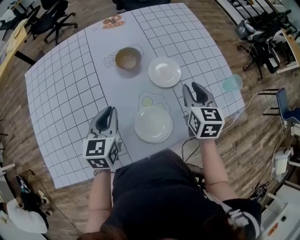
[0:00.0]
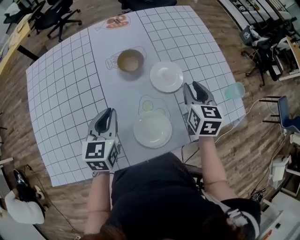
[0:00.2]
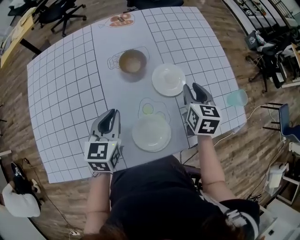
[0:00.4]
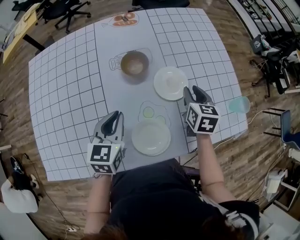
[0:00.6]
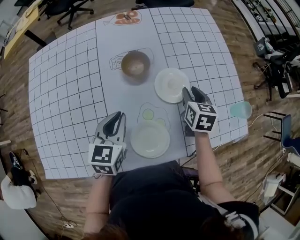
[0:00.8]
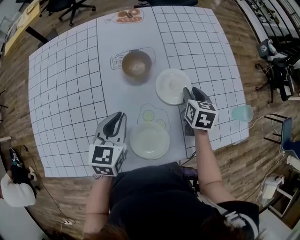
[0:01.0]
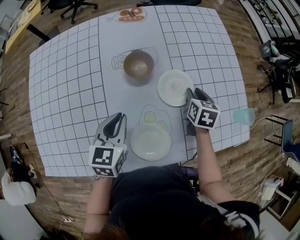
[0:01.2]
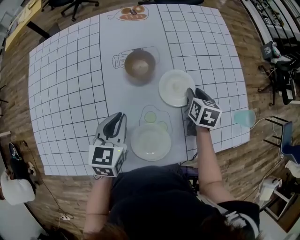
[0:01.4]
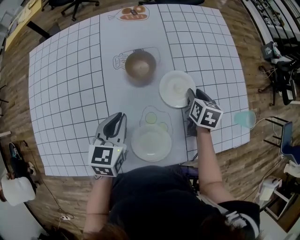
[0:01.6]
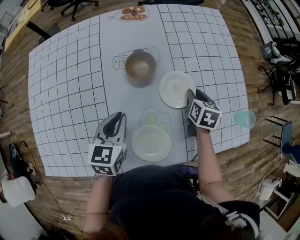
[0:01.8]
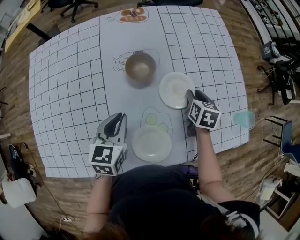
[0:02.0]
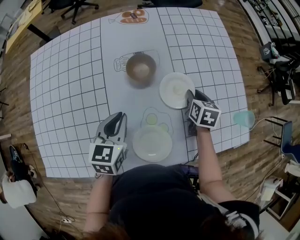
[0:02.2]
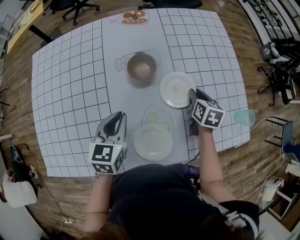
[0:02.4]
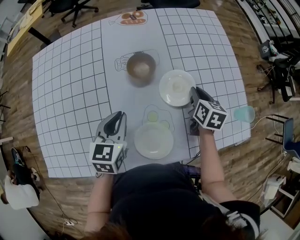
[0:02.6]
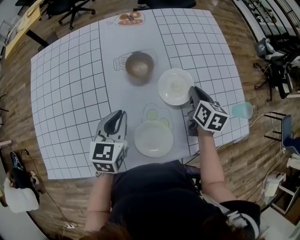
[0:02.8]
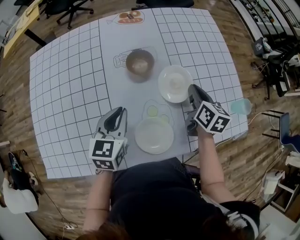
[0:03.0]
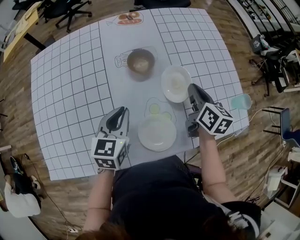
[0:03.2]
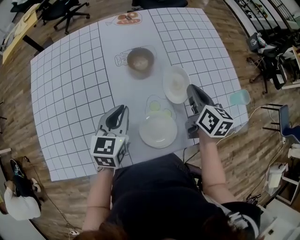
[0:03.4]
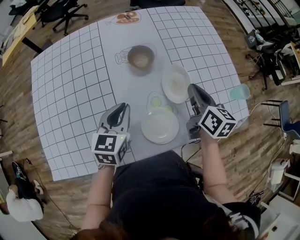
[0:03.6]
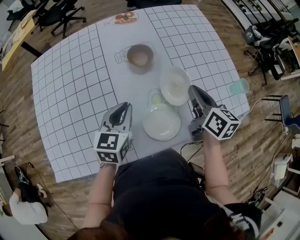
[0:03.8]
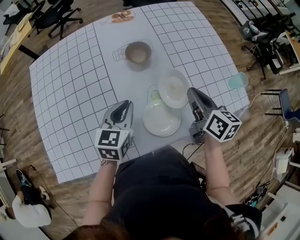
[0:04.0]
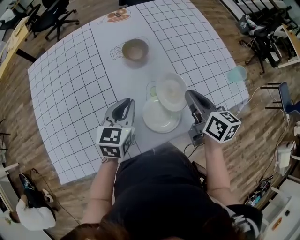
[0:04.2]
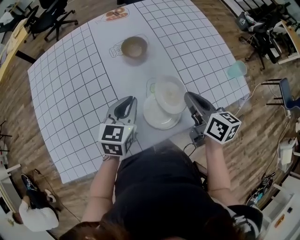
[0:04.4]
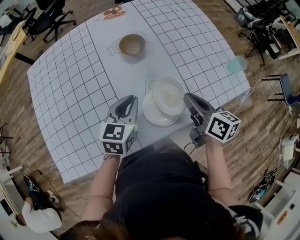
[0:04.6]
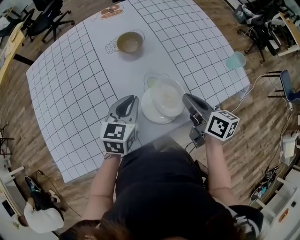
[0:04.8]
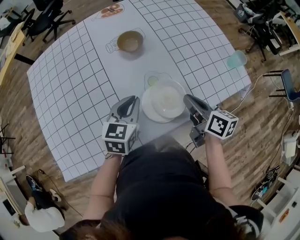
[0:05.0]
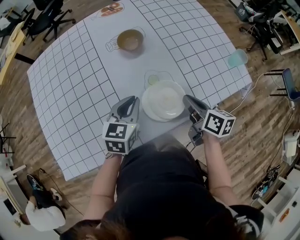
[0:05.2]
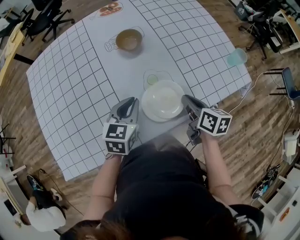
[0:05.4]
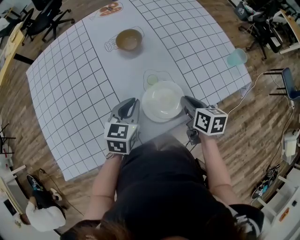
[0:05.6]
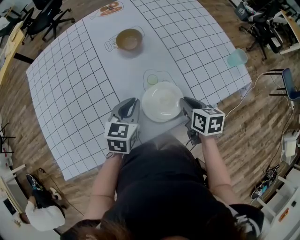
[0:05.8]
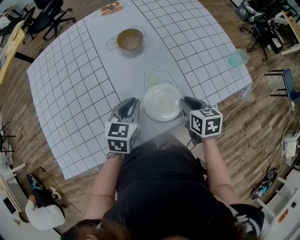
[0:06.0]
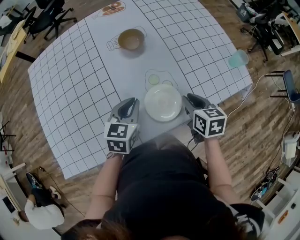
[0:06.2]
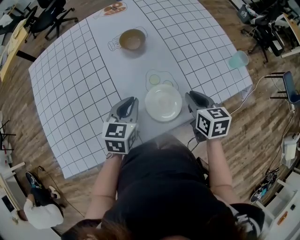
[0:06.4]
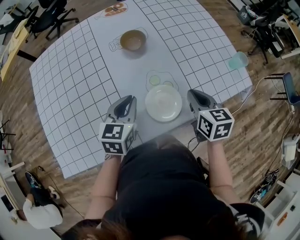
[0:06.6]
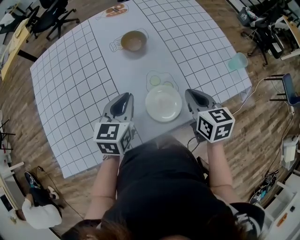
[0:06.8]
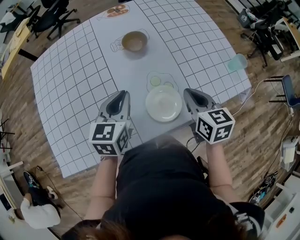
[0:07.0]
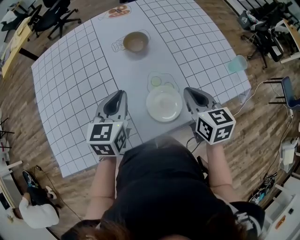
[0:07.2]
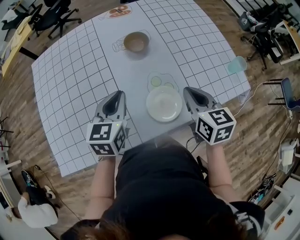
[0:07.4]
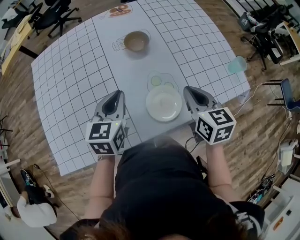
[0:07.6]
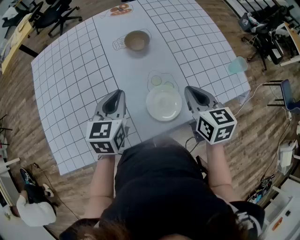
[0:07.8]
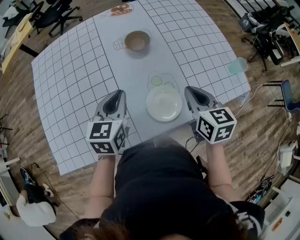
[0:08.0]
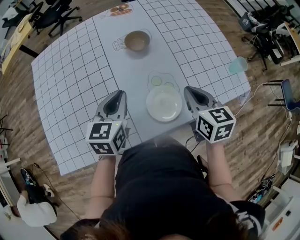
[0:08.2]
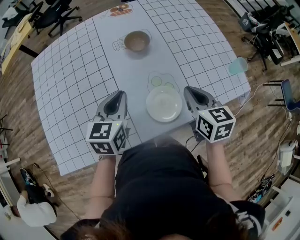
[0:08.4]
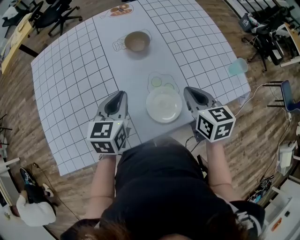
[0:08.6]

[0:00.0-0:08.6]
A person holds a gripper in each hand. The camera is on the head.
0:00.0 to 0:01.4: The right gripper moves downward and forward, roughly 20 cm, and turns by approximately 20 degrees. Meanwhile the left gripper ends up approximately 5 cm from where it was.
0:01.4 to 0:02.8: The right gripper shifts some 5 cm upward.
0:02.8 to 0:04.4: The left gripper travels backward by about 5 cm. Meanwhile the right gripper travels backward and upward by approximately 20 cm.
0:04.4 to 0:05.8: The right gripper goes about 10 cm downward, and rotates roughly 20 degrees, while the left gripper ends up roughly 5 cm from where it was.
0:05.8 to 0:07.2: The right gripper moves upward, approximately 10 cm, and turns by roughly 20 degrees. Meanwhile the left gripper heads upward and to the left, covering some 10 cm.
0:07.2 to 0:08.6: The two grippers keep their place.

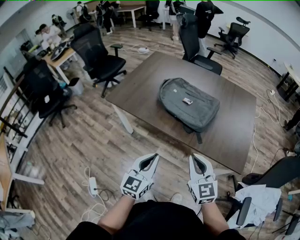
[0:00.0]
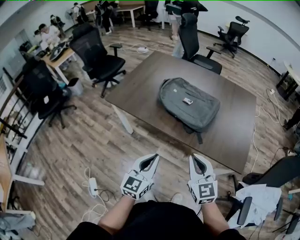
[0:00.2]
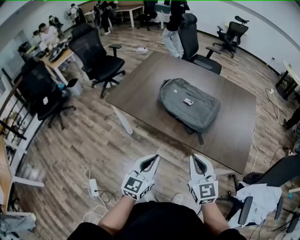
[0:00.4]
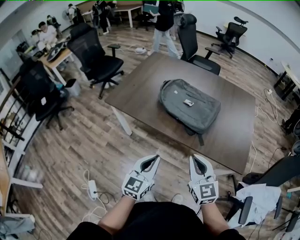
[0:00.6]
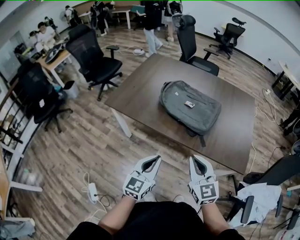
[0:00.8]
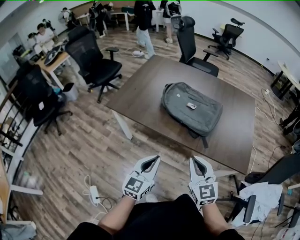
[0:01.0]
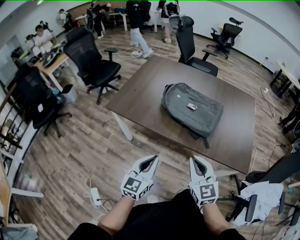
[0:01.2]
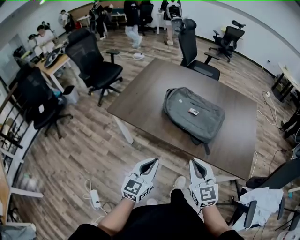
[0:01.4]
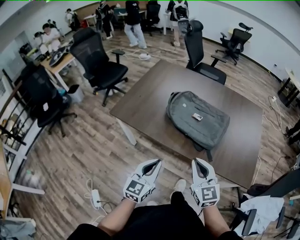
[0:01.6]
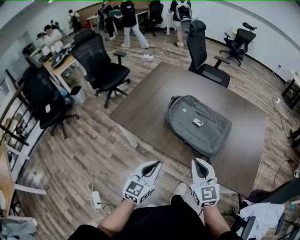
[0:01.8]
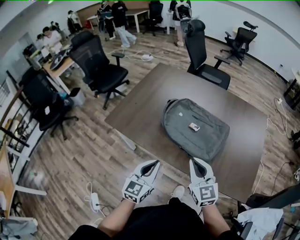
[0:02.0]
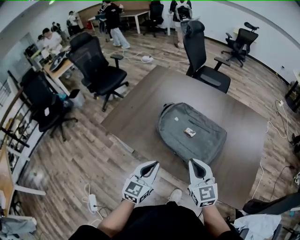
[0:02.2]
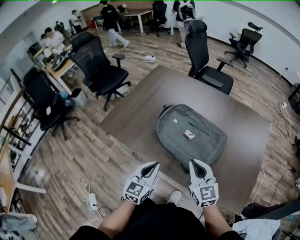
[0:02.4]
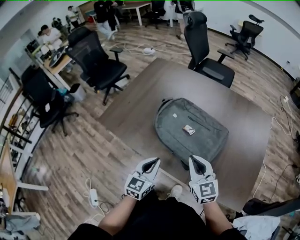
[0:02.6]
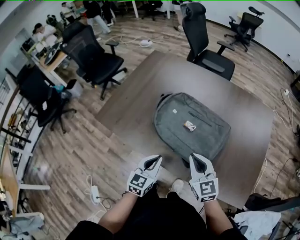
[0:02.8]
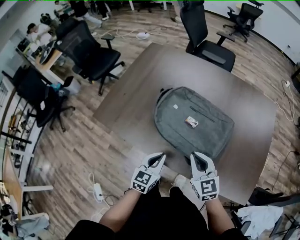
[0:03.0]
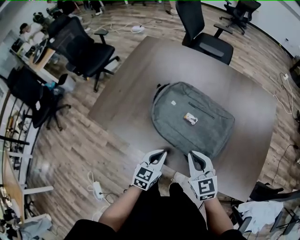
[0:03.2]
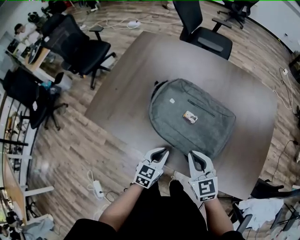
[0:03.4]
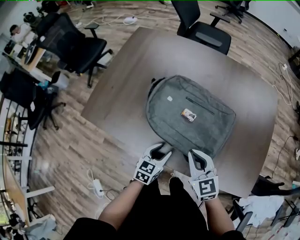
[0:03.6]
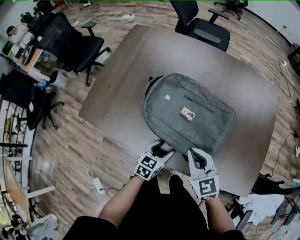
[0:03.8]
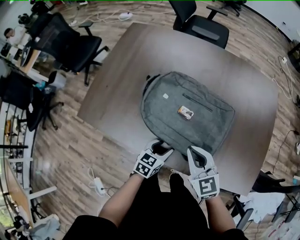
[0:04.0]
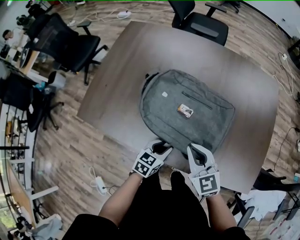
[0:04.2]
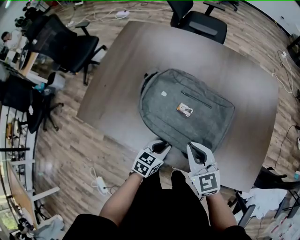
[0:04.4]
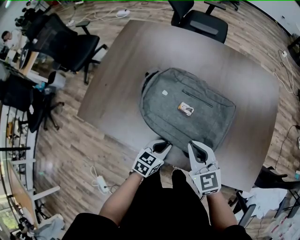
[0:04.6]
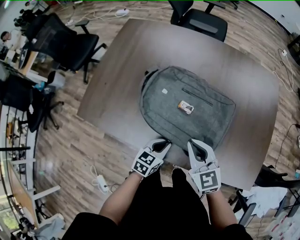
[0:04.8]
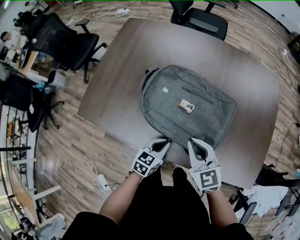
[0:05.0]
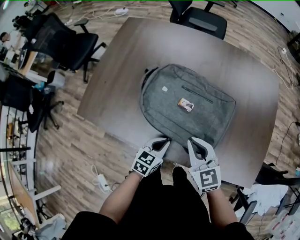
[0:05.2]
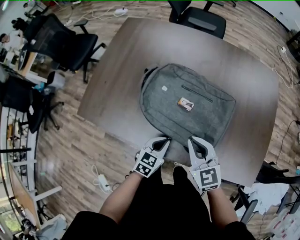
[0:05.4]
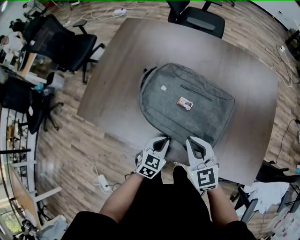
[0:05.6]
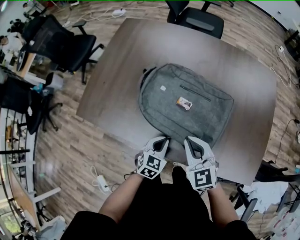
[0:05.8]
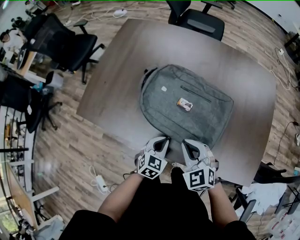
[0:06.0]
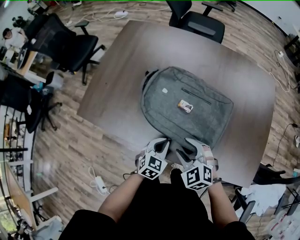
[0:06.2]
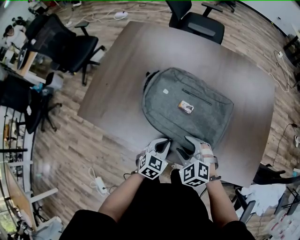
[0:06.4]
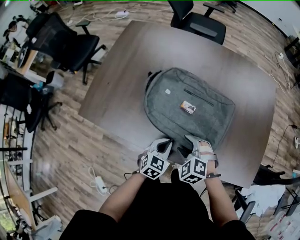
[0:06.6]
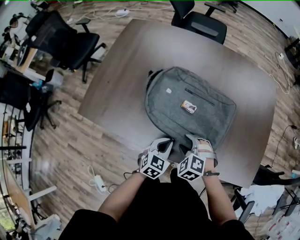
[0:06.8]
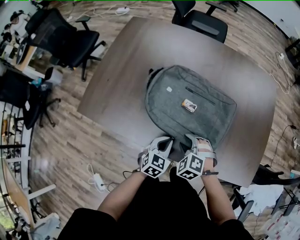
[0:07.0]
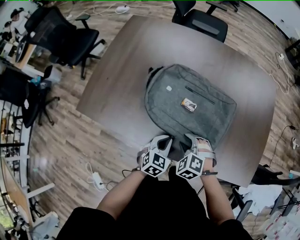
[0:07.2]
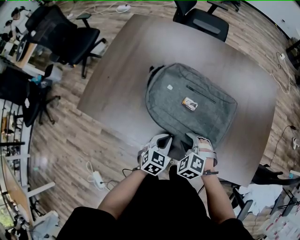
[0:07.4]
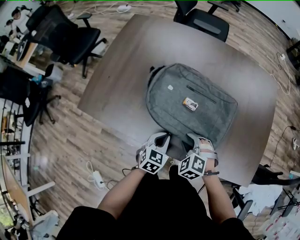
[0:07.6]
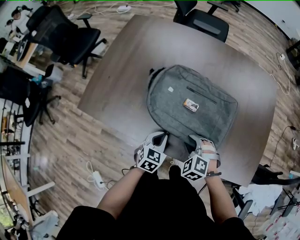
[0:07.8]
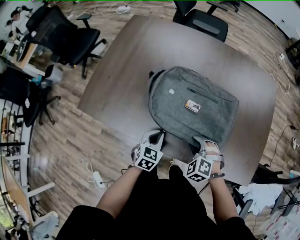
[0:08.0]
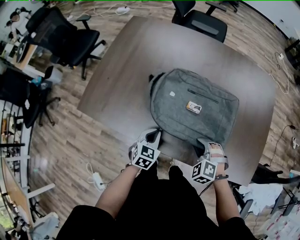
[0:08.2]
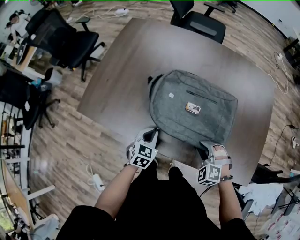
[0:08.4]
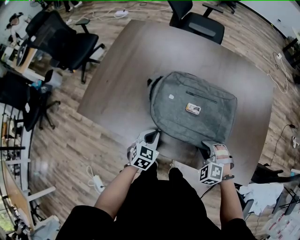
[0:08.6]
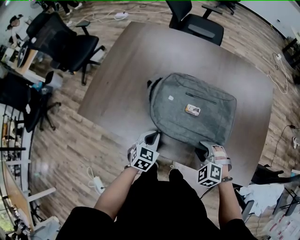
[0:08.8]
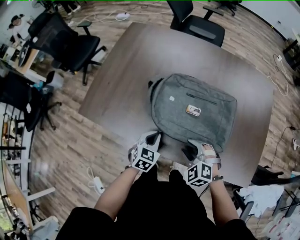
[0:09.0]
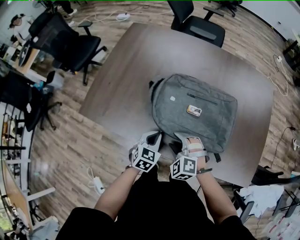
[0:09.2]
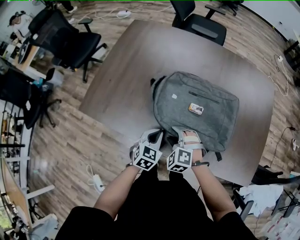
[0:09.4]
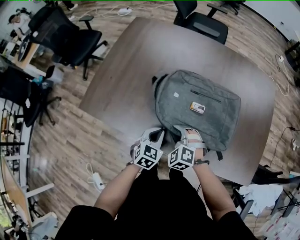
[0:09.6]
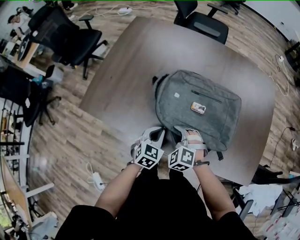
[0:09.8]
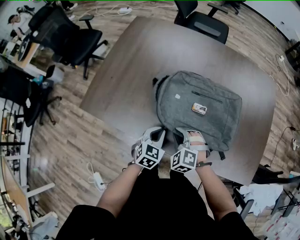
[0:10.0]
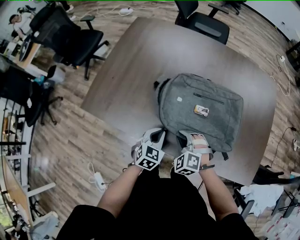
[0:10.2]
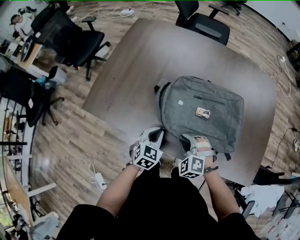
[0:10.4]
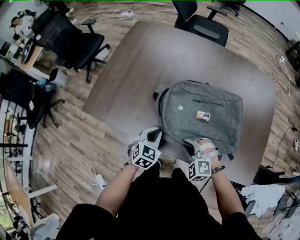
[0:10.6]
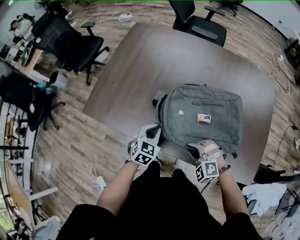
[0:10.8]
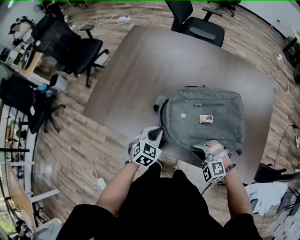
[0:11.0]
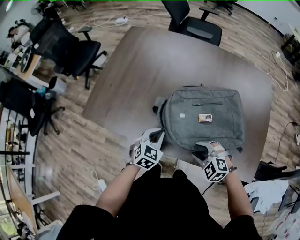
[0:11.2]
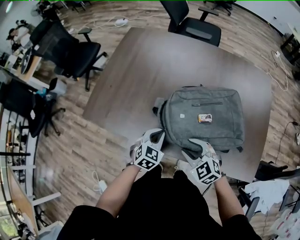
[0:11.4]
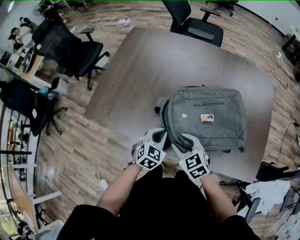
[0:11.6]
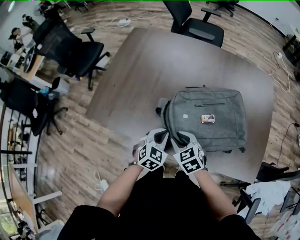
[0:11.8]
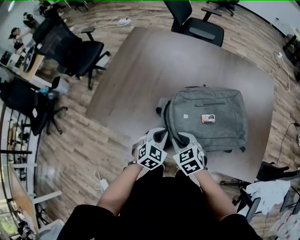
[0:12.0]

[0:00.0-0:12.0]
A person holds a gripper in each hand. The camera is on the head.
0:00.0 to 0:01.6: Both grippers travel together forward and to the left, about 10 cm.
0:01.6 to 0:03.0: Both grippers travel together forward, downward and to the right, roughly 20 cm.
0:03.0 to 0:04.4: The left gripper moves downward, approximately 10 cm, swivels roughly 20 degrees, and opens and closes again.
0:04.4 to 0:06.0: The right gripper rotates about 20 degrees; the left gripper rotates some 20 degrees.
0:06.0 to 0:07.6: The right gripper shifts about 10 cm downward, rotates about 30 degrees, and opens.
0:07.6 to 0:09.0: The right gripper travels to the right and back again, roughly 10 cm each way.
0:09.0 to 0:10.4: The right gripper closes its fingers.
0:10.4 to 0:12.0: The right gripper reaches some 5 cm to the right, then returns, twists about 40 degrees clockwise, seen from behind, and opens, then closes again.

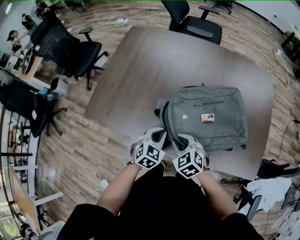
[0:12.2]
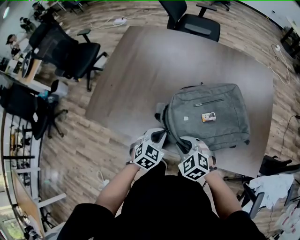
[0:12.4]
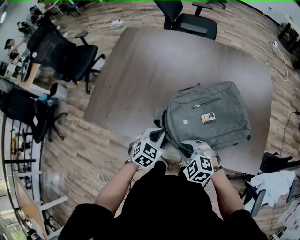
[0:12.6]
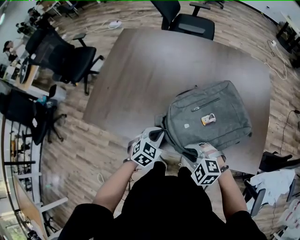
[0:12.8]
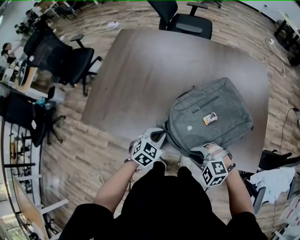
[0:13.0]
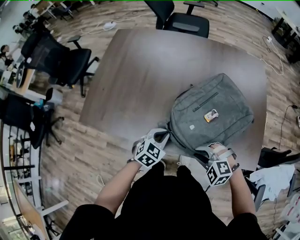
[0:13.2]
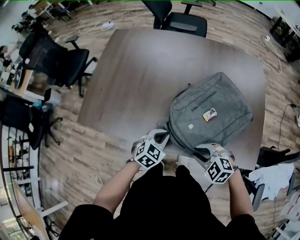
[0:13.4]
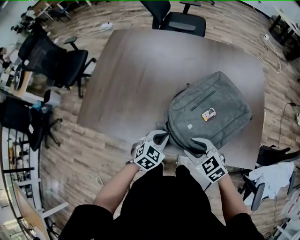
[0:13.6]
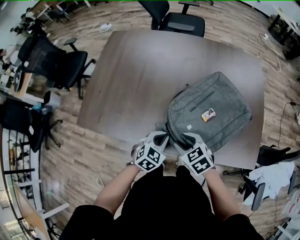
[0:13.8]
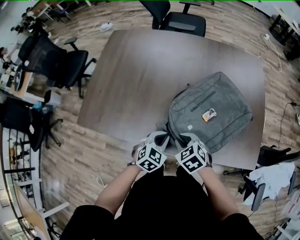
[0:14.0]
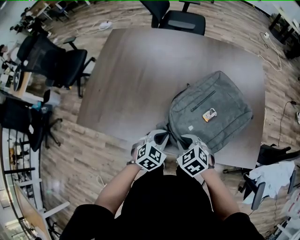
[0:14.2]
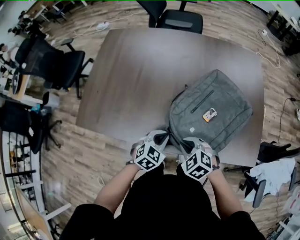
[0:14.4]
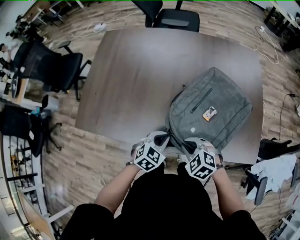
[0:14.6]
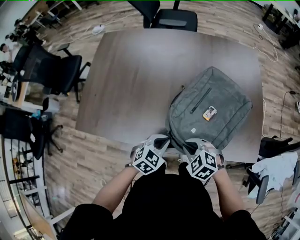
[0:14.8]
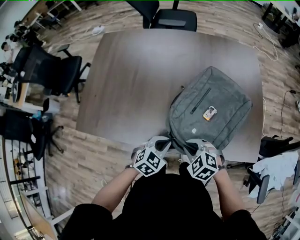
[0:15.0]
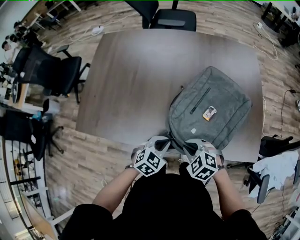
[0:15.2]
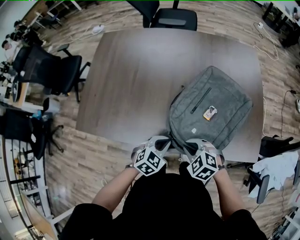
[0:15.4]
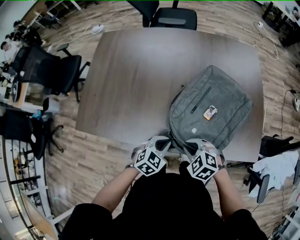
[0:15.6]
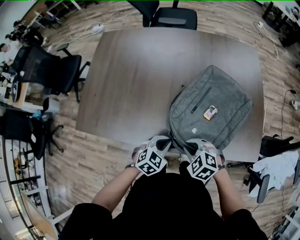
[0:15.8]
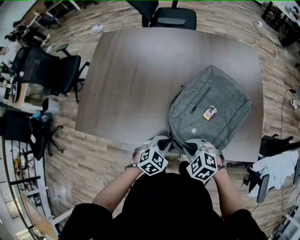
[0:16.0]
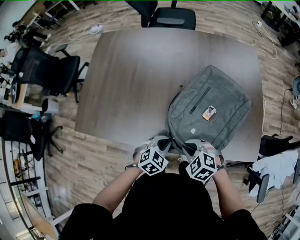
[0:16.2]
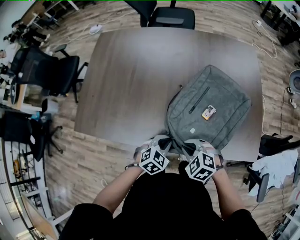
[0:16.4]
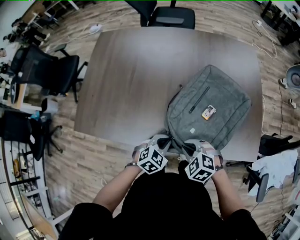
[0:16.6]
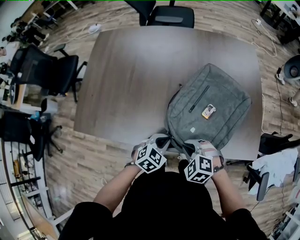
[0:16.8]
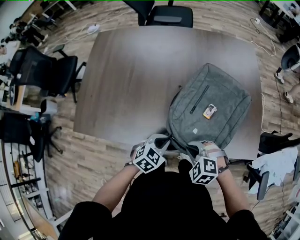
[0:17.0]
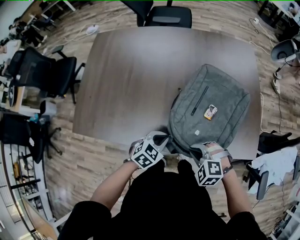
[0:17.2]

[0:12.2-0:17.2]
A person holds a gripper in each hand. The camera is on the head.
0:12.2 to 0:13.8: The grippers both shift to the right by some 5 cm. The right gripper opens its fingers.
0:13.8 to 0:15.6: The right gripper moves some 5 cm, rotates approximately 20 degrees, and closes up.
0:15.6 to 0:17.2: The grippers move only a little.
